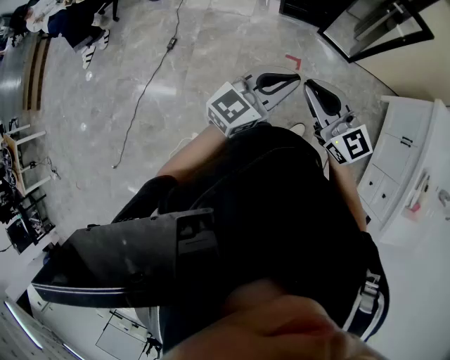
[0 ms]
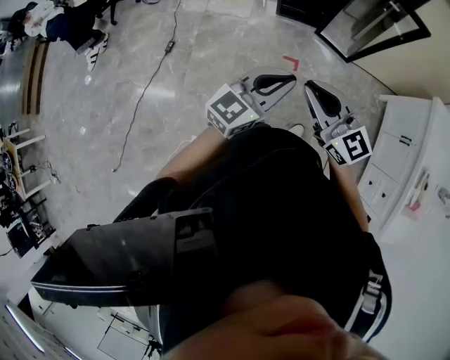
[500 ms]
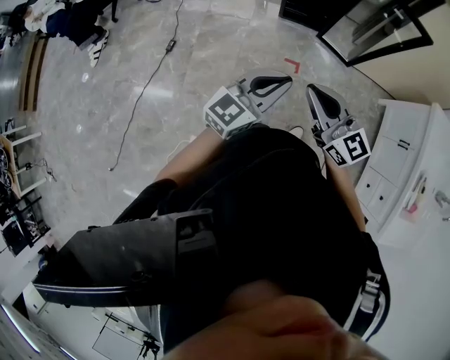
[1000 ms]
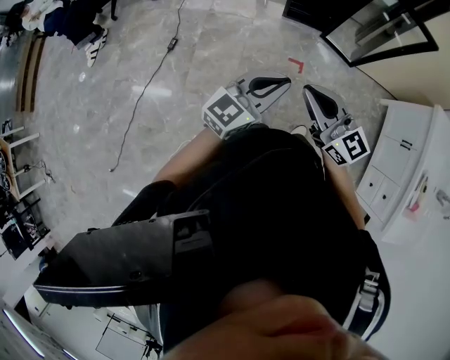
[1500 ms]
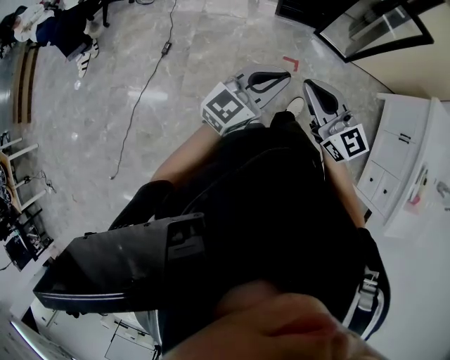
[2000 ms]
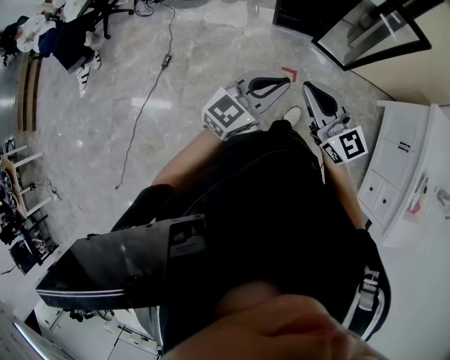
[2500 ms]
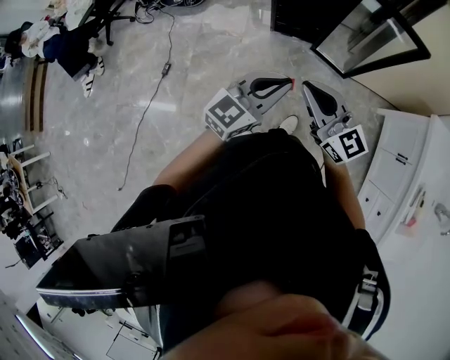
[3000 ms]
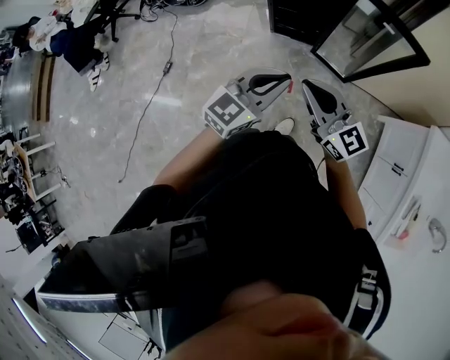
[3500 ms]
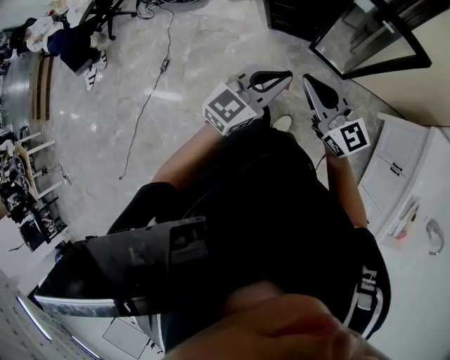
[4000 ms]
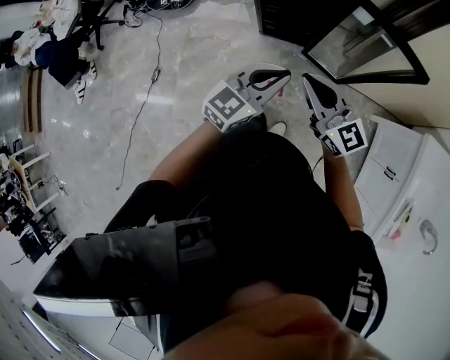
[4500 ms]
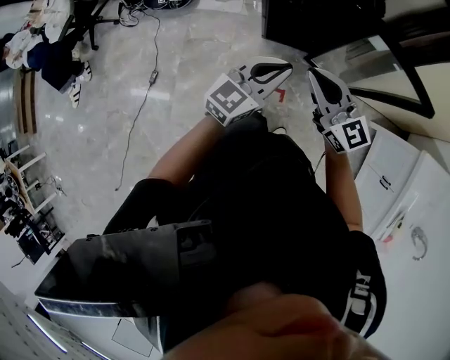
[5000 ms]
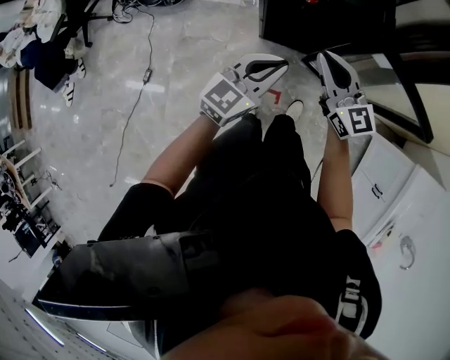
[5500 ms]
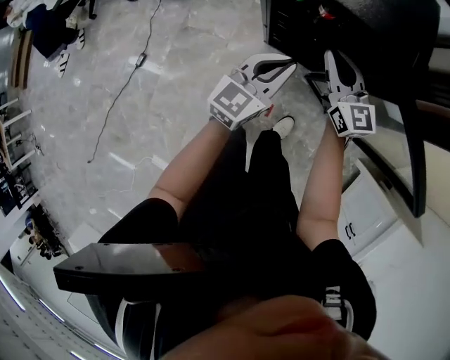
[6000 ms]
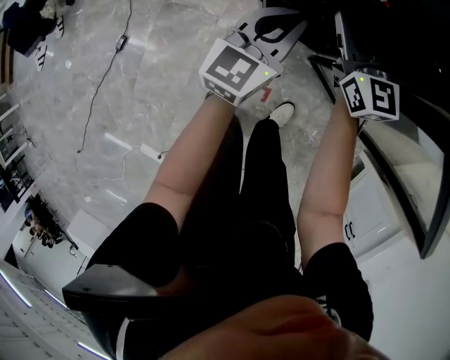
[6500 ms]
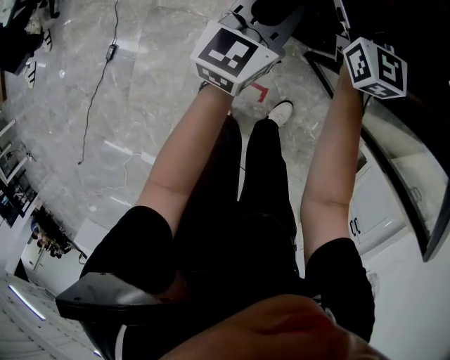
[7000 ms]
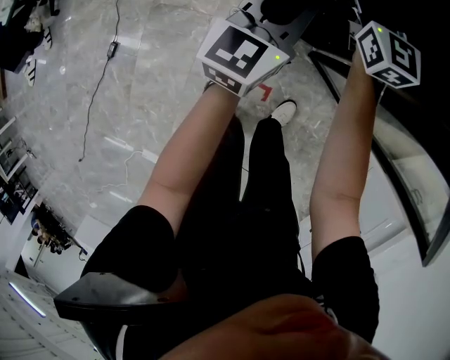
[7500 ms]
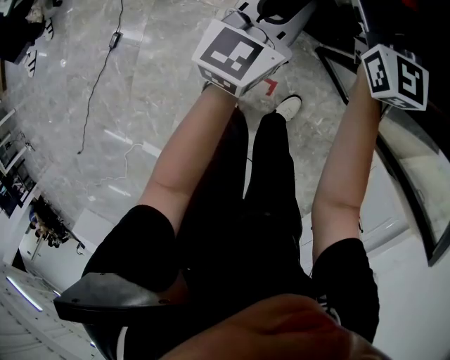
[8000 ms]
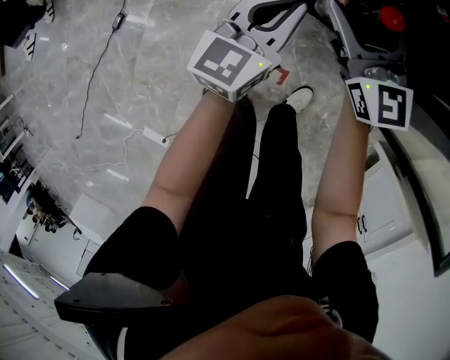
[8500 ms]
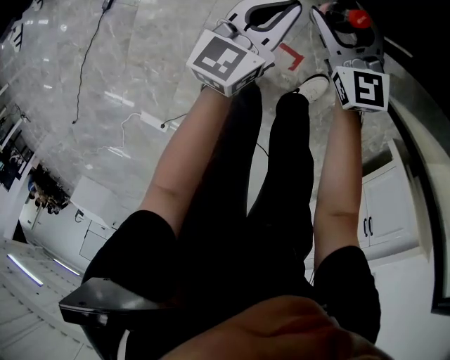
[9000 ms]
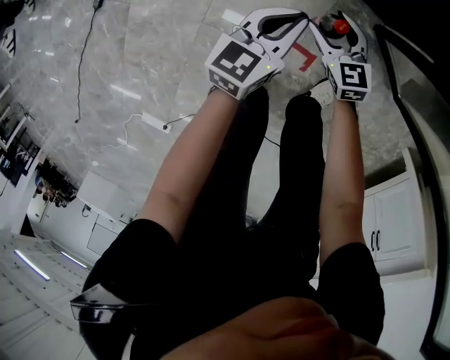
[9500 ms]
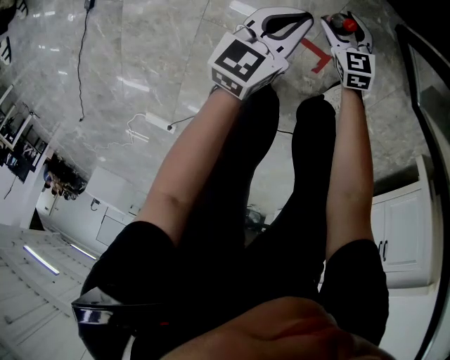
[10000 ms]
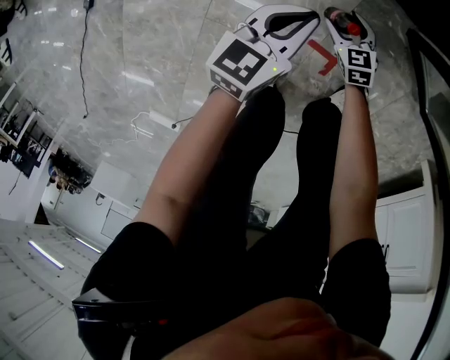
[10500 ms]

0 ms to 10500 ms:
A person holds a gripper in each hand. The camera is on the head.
0 ms to 2000 ms: The two grippers go approximately 5 cm to the left.
2000 ms to 4000 ms: The two grippers go about 30 cm forward and to the right.
4000 ms to 6500 ms: The pair of grippers is taken forward, roughly 50 cm. Both grippers move downward, roughly 30 cm. The left gripper swivels some 30 degrees.
6500 ms to 8500 ms: The right gripper shifts about 10 cm to the left, moves roughly 10 cm forward and comes back, and opens up; the left gripper shifts about 15 cm to the left and downward.
8500 ms to 10500 ms: The right gripper travels downward by roughly 70 cm, and points its fingers some 40 degrees further downward. Meanwhile the left gripper is displaced downward by some 40 cm, and rotates some 20 degrees.

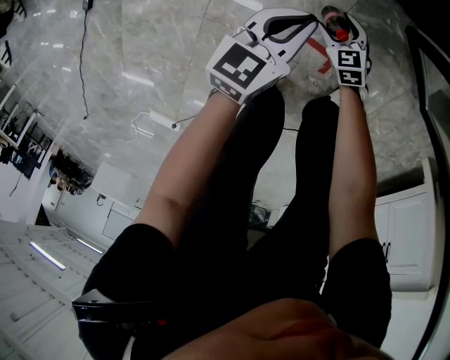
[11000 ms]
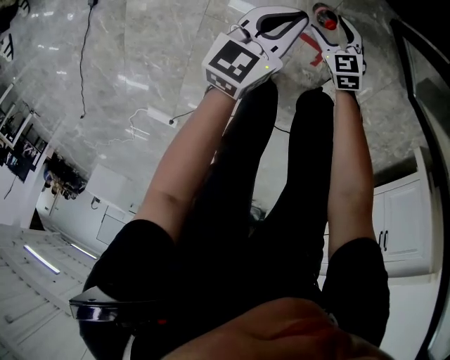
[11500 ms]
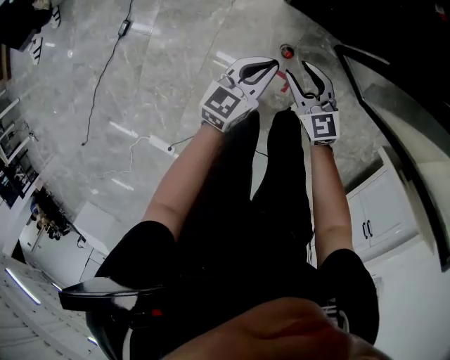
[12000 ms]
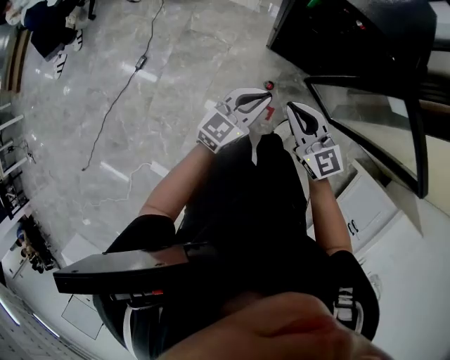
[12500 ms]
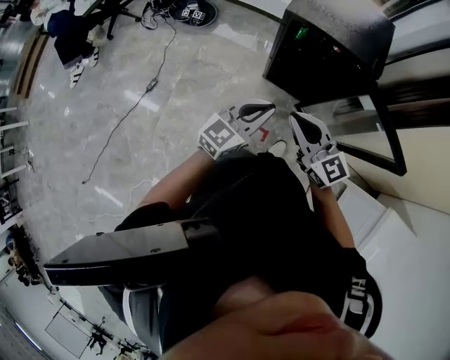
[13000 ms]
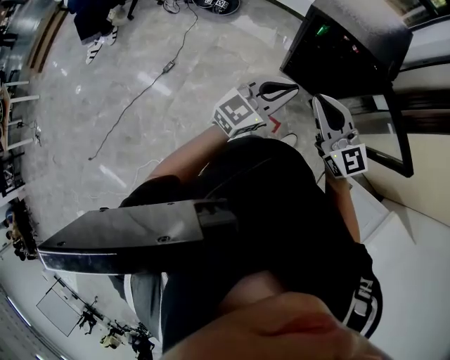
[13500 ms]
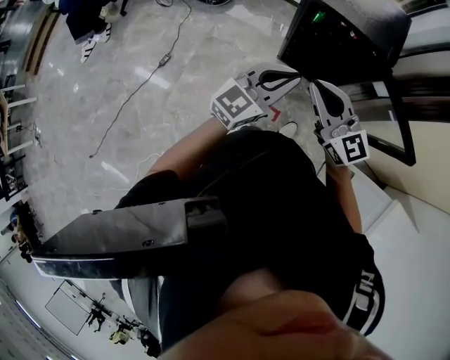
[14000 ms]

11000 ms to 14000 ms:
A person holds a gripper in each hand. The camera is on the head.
11000 ms to 12500 ms: The two grippers go roughly 70 cm upward. The right gripper tips its fingers upward by about 40 degrees, and closes up.
12500 ms to 14000 ms: The grippers both shift upward by some 25 cm.

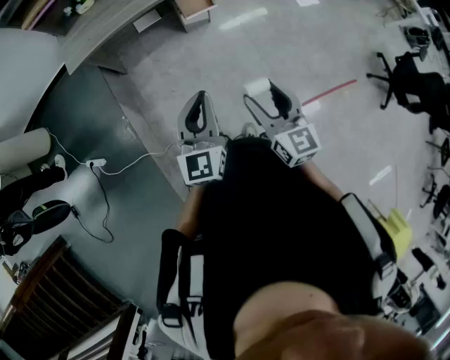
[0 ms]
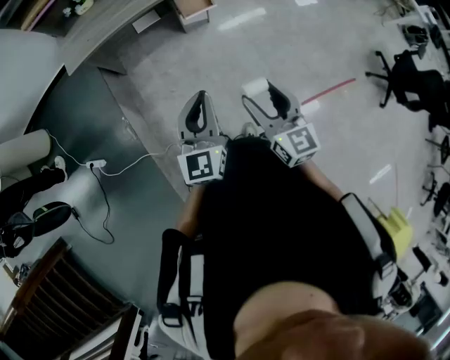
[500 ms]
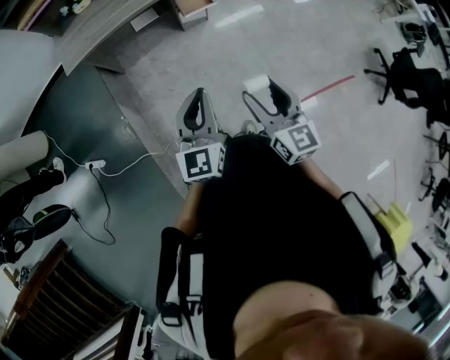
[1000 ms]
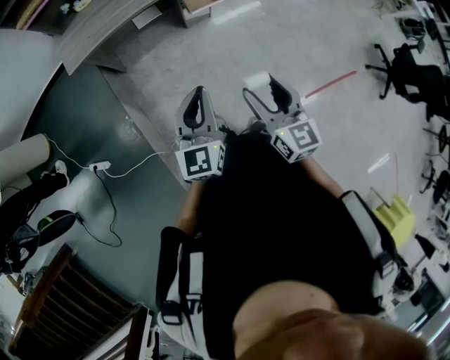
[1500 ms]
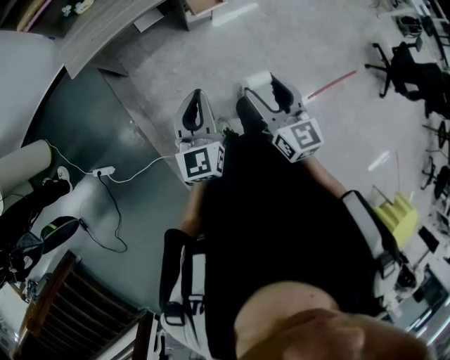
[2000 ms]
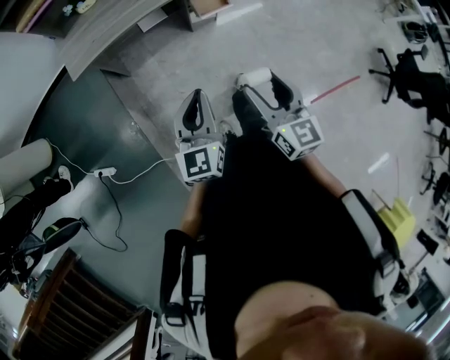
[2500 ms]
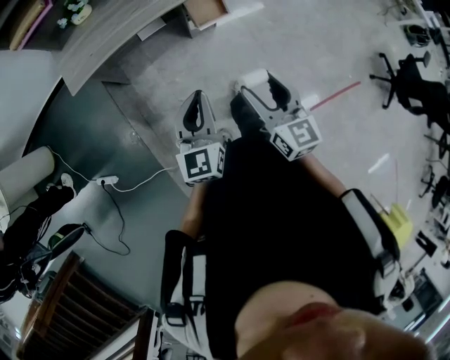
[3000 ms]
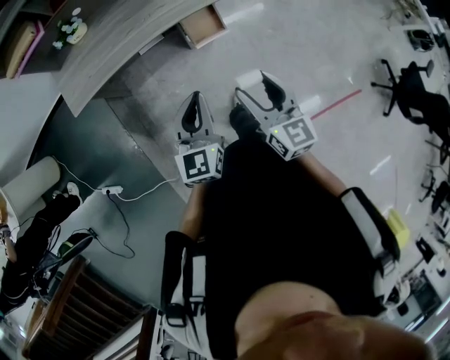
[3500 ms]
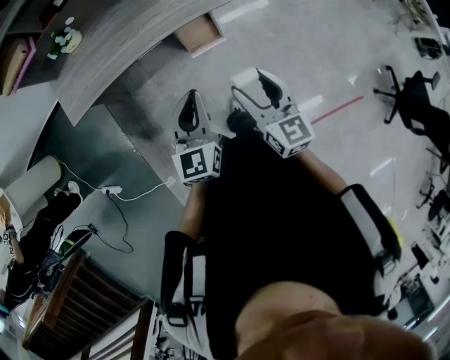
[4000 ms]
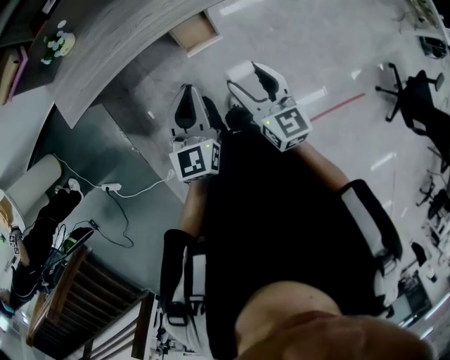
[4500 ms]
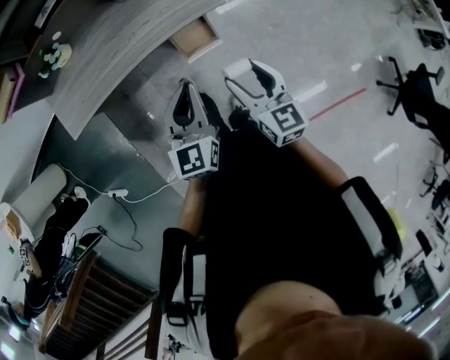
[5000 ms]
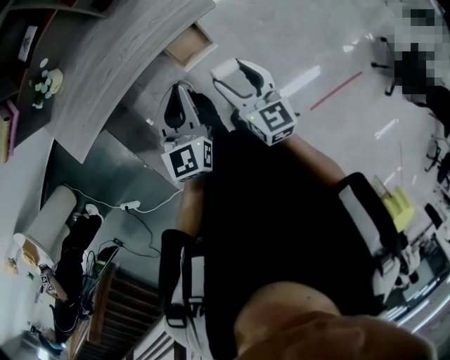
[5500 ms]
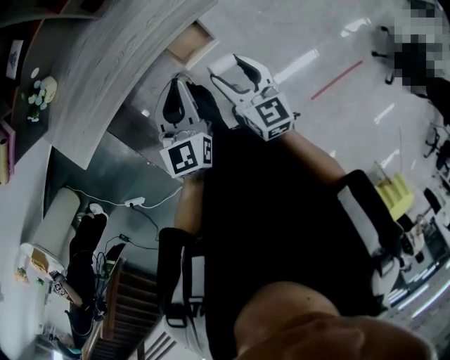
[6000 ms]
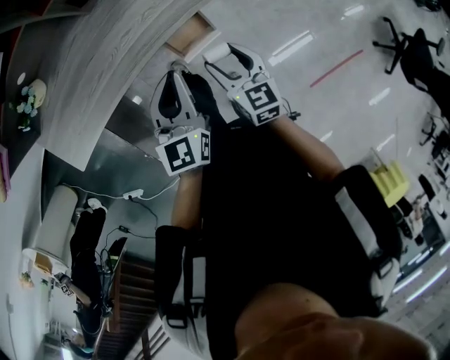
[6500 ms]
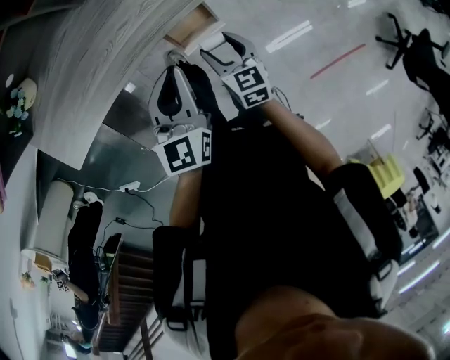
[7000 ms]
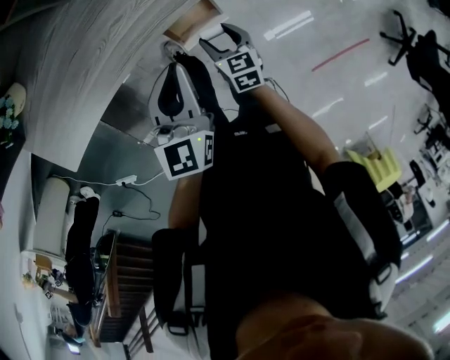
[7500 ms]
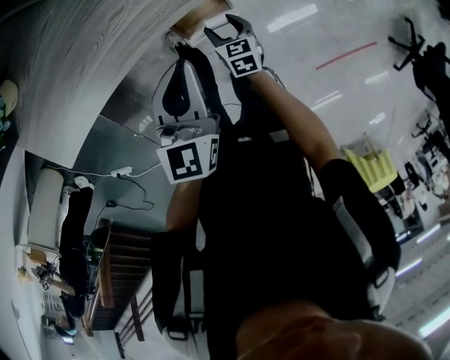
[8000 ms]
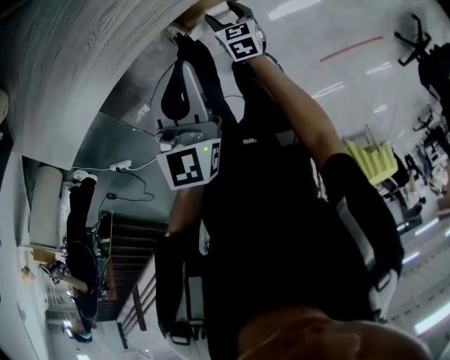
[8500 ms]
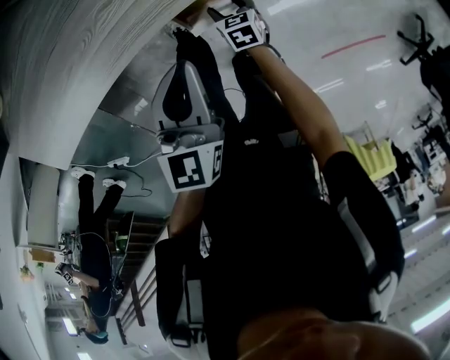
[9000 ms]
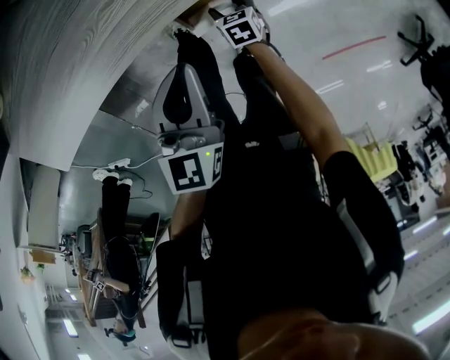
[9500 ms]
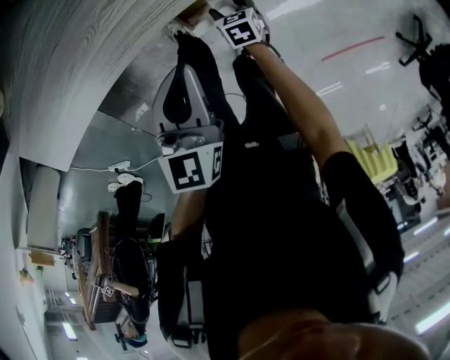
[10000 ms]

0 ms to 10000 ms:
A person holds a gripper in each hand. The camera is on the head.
0 ms to 2000 ms: The two grippers go about 15 cm to the left and forward.
2000 ms to 4000 ms: Both grippers move forward and to the right, some 35 cm.
4000 ms to 6000 ms: The left gripper heads forward, covering approximately 20 cm. Meanwhile the right gripper heads forward and downward, covering about 20 cm.
6000 ms to 8000 ms: The right gripper travels downward by approximately 35 cm, and angles its fingers downward, by some 30 degrees. Meanwhile the left gripper shifts approximately 15 cm downward and forward.
8000 ms to 10000 ms: The right gripper is displaced downward by about 10 cm, while the left gripper shifts by approximately 5 cm.

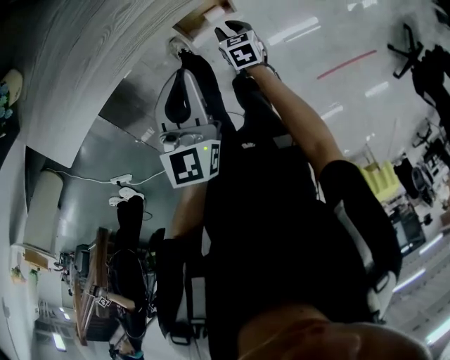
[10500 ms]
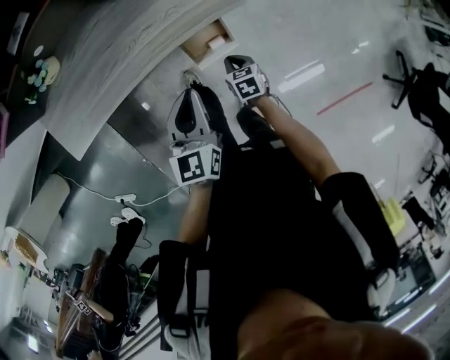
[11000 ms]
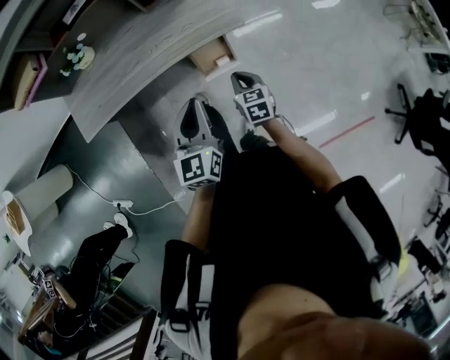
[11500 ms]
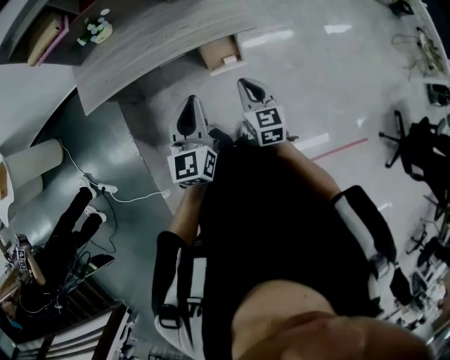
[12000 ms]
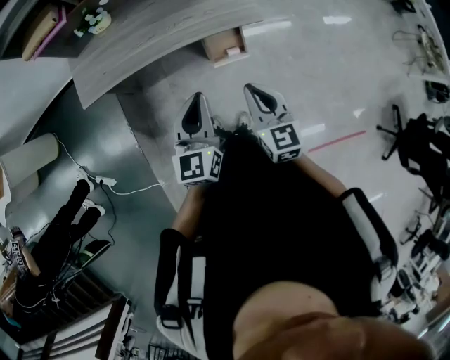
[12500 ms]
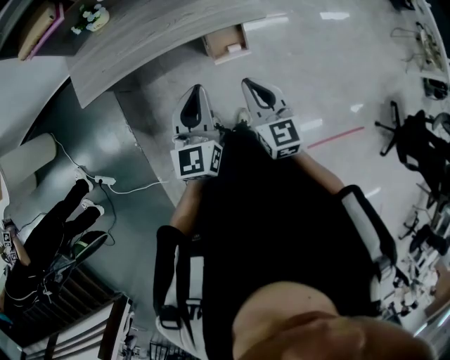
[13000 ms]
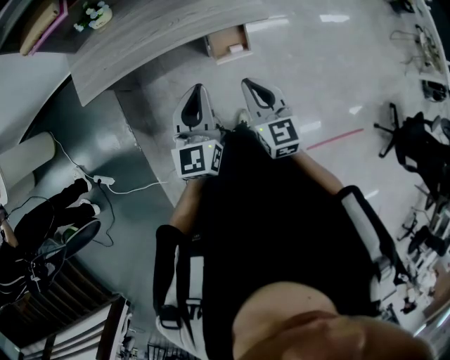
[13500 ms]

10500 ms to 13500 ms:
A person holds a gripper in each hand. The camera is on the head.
10500 ms to 12000 ms: The left gripper travels backward and upward by some 30 cm, and swivels roughly 20 degrees. The right gripper travels upward and backward by some 40 cm, points its fingers some 40 degrees further upward, and closes its fingers.
12000 ms to 13500 ms: The right gripper shifts about 10 cm upward and to the left.
